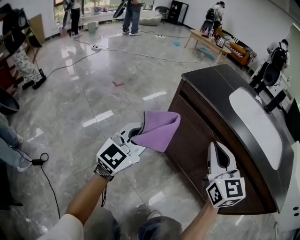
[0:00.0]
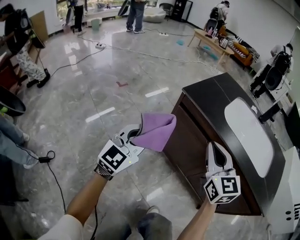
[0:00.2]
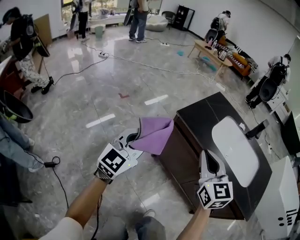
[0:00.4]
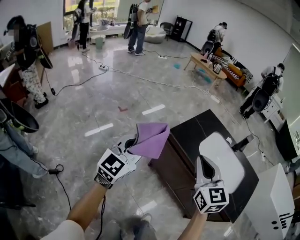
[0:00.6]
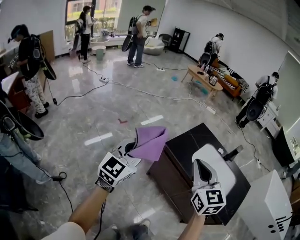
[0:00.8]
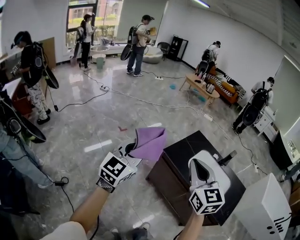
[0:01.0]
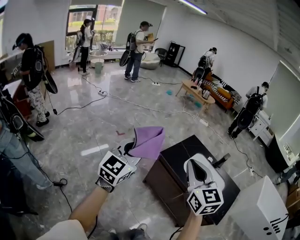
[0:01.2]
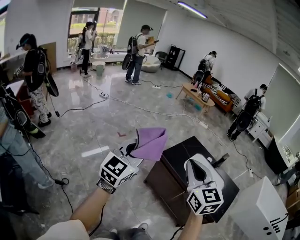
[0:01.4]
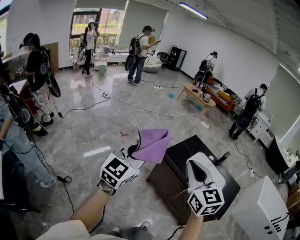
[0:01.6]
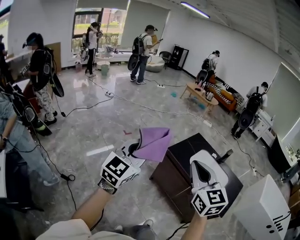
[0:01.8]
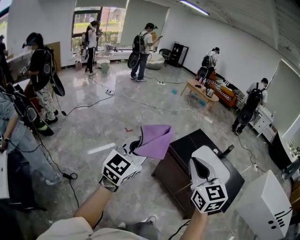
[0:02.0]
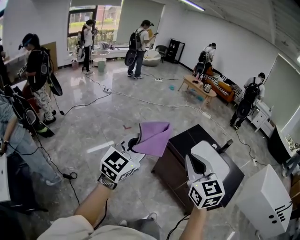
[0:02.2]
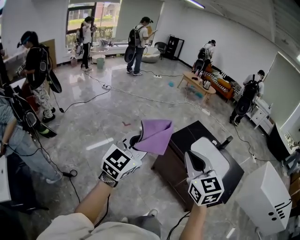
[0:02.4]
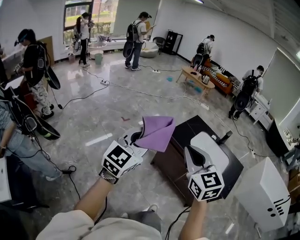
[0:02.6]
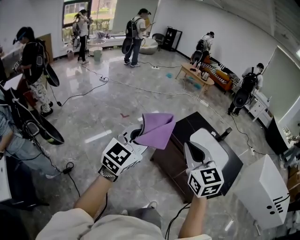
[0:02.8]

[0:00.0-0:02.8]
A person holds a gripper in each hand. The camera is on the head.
0:00.0 to 0:01.4: Both grippers travel together upward, about 60 cm.
0:01.4 to 0:02.8: The right gripper heads backward and to the left, covering approximately 10 cm; the left gripper moves backward, roughly 10 cm.

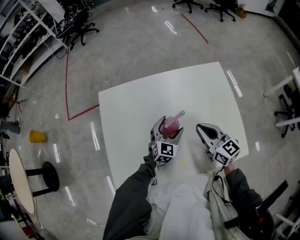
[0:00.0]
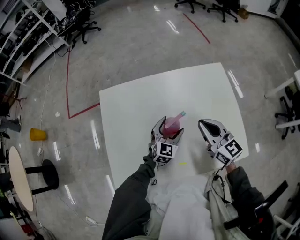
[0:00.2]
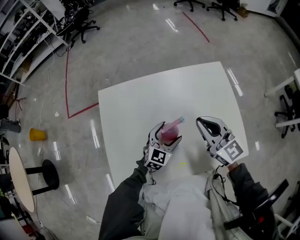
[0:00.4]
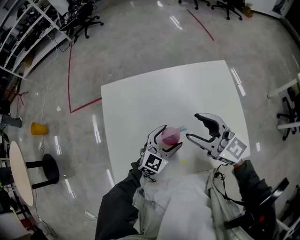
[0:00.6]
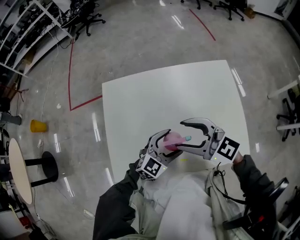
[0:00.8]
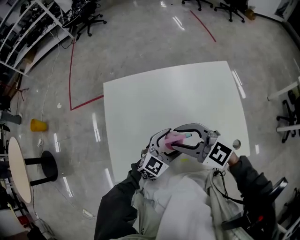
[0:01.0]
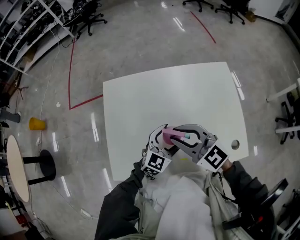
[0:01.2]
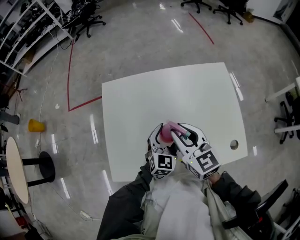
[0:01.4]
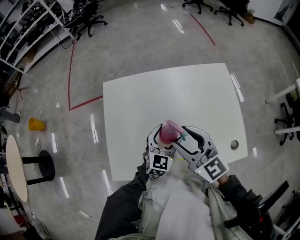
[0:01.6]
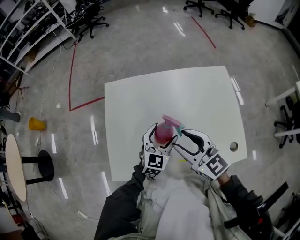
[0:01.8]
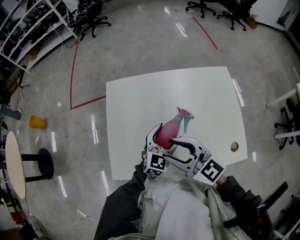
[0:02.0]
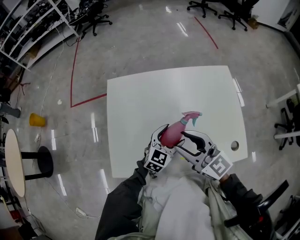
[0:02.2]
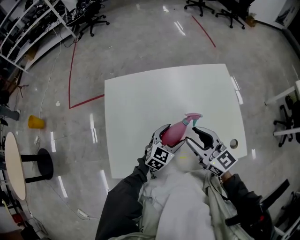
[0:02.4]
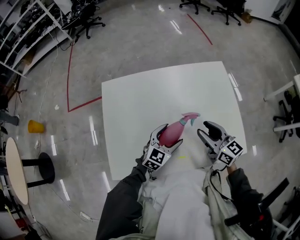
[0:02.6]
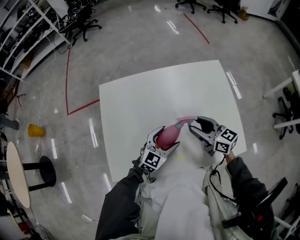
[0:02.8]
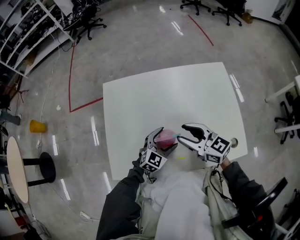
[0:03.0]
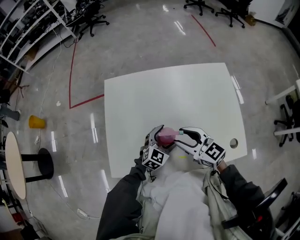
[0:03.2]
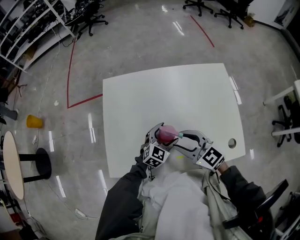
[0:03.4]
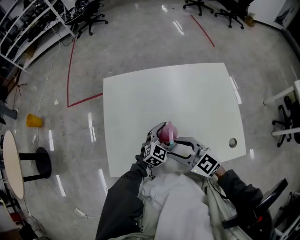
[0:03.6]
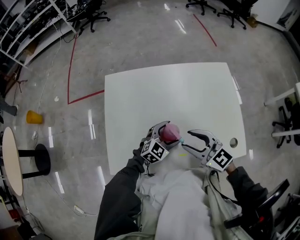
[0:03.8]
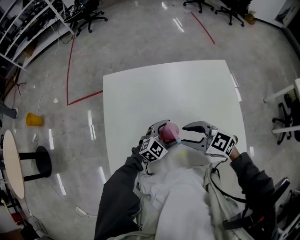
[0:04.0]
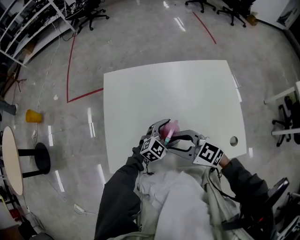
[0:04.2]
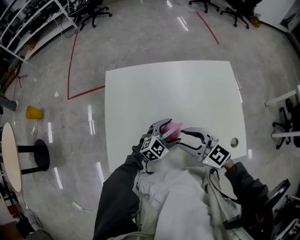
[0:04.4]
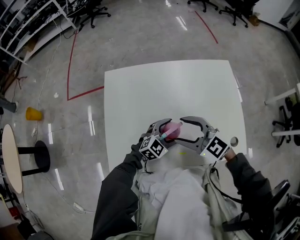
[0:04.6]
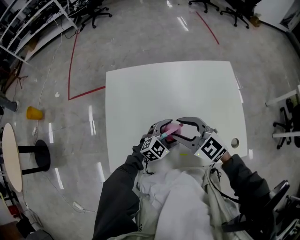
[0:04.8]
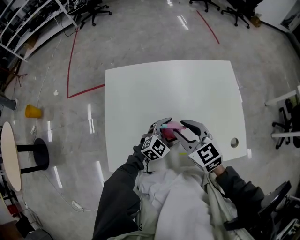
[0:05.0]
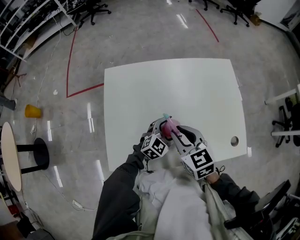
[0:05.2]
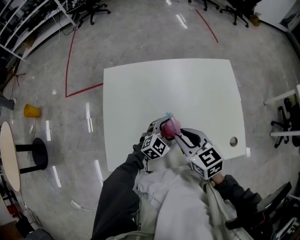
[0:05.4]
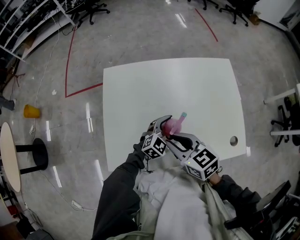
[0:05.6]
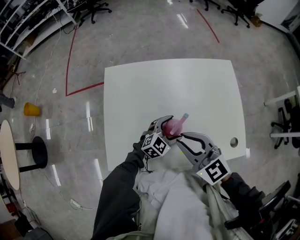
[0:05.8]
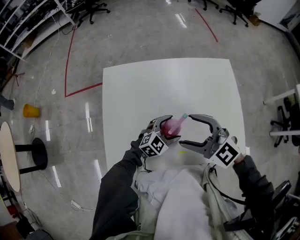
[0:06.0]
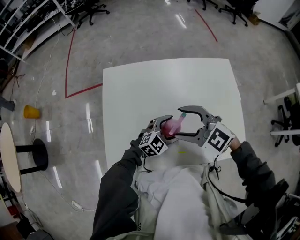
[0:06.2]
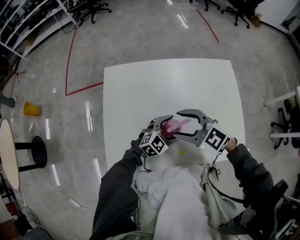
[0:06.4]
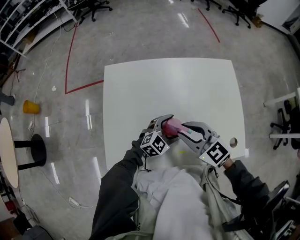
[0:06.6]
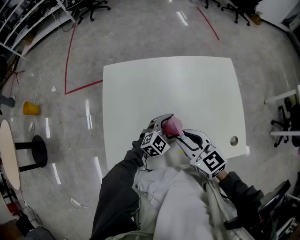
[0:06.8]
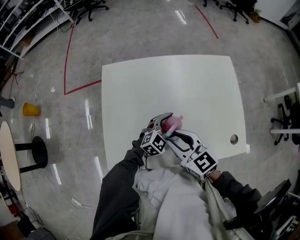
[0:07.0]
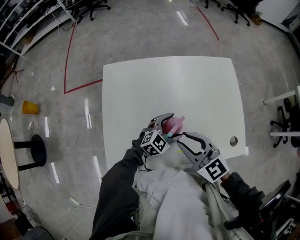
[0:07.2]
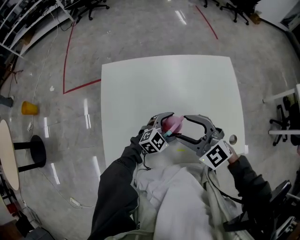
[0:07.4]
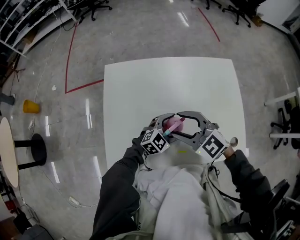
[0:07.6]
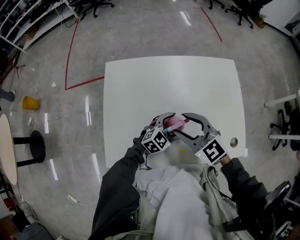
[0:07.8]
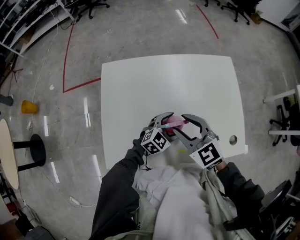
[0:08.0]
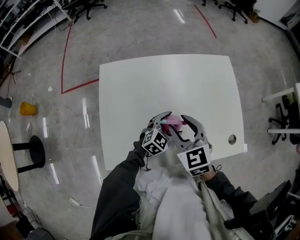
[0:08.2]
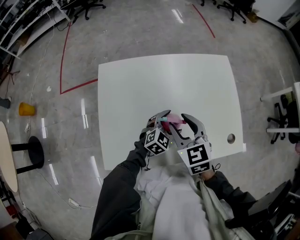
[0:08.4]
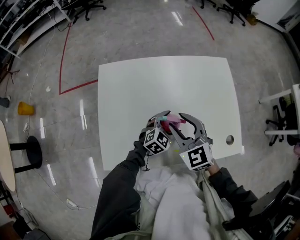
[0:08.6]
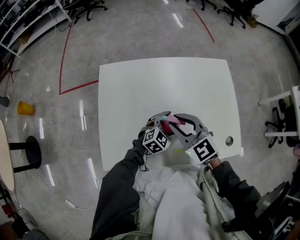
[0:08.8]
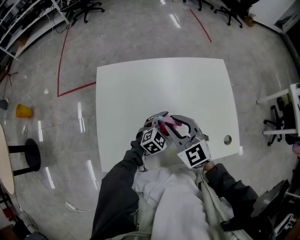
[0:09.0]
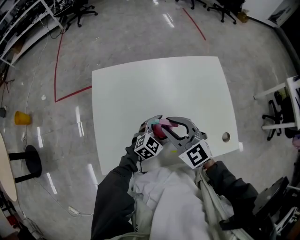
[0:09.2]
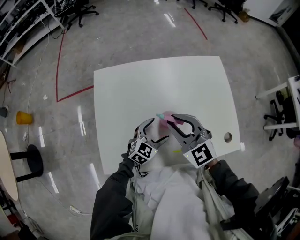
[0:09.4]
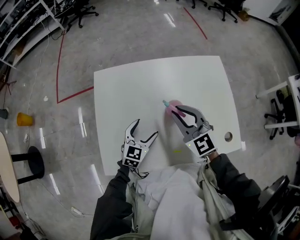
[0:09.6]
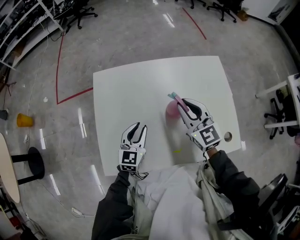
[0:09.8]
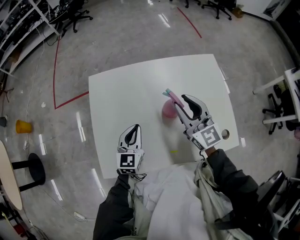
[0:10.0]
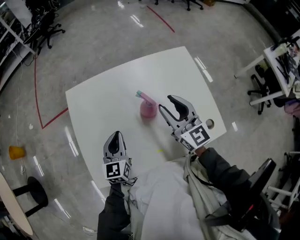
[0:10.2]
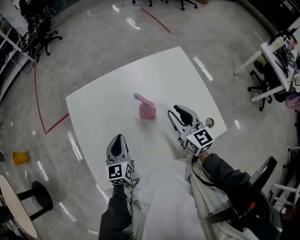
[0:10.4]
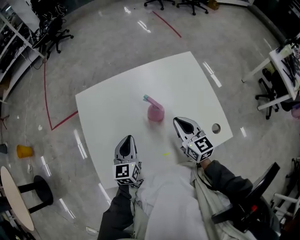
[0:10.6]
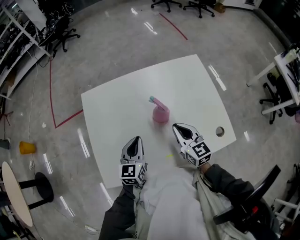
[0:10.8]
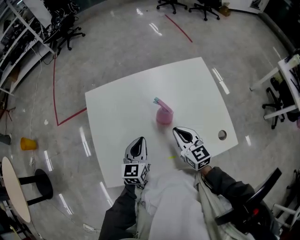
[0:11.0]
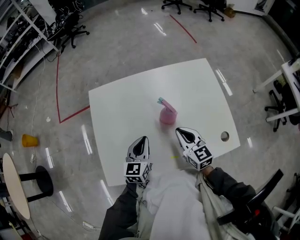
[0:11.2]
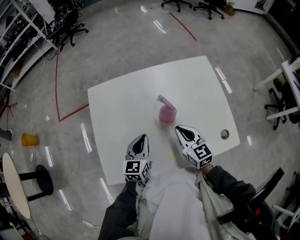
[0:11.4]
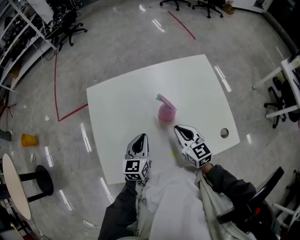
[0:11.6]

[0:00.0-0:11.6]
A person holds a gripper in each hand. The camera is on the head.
0:00.0 to 0:01.4: The right gripper goes some 15 cm to the left and upward, and opens, then closes once more. The left gripper goes some 10 cm upward and backward.
0:01.4 to 0:02.8: The right gripper travels to the right and downward by roughly 15 cm, and rotates roughly 20 degrees.
0:02.8 to 0:04.4: The right gripper moves some 15 cm, and turns by approximately 30 degrees.
0:04.4 to 0:05.8: The right gripper opens and closes again.
0:05.8 to 0:07.2: The right gripper opens and closes again.
0:07.2 to 0:08.8: The right gripper shifts about 5 cm forward, and opens and closes again.
0:08.8 to 0:10.2: The right gripper is displaced to the right and forward by approximately 10 cm, and rotates approximately 40 degrees. The left gripper goes roughly 20 cm to the left and upward, swivels some 50 degrees, and closes its fingers.
0:10.2 to 0:11.6: The left gripper heads to the right, covering roughly 10 cm. Meanwhile the right gripper shifts approximately 15 cm downward and backward, changes its angle by about 20 degrees, and closes up.

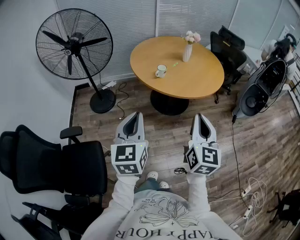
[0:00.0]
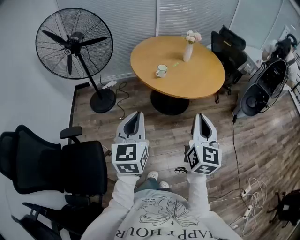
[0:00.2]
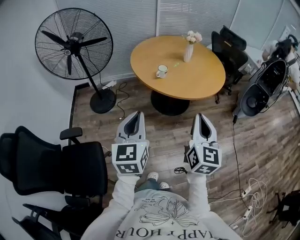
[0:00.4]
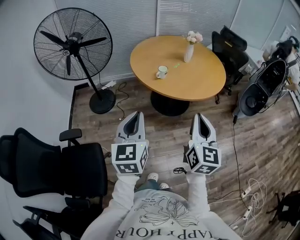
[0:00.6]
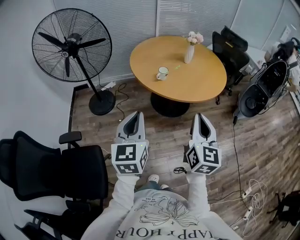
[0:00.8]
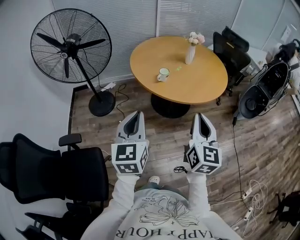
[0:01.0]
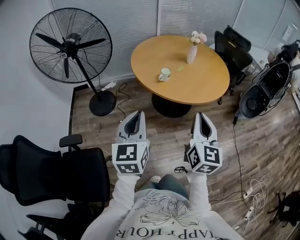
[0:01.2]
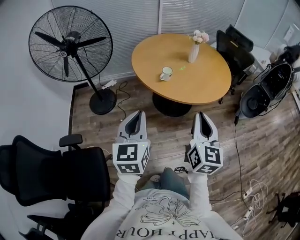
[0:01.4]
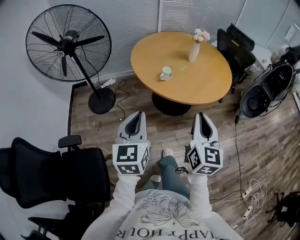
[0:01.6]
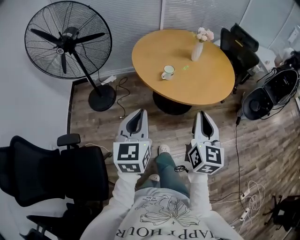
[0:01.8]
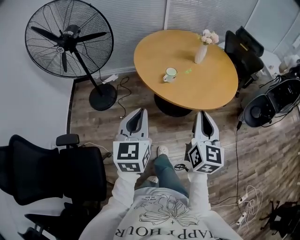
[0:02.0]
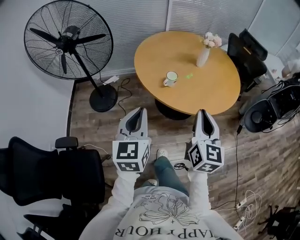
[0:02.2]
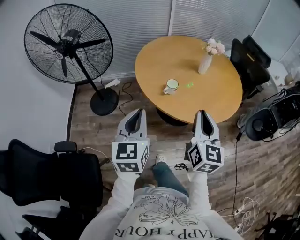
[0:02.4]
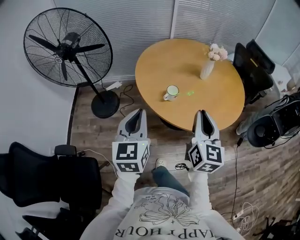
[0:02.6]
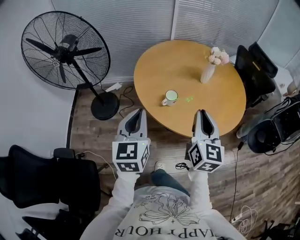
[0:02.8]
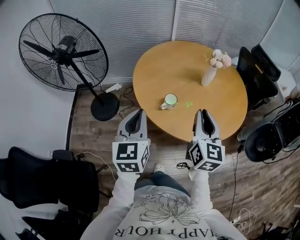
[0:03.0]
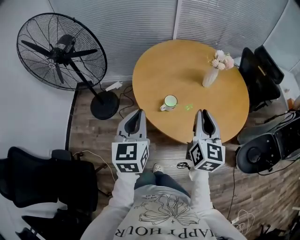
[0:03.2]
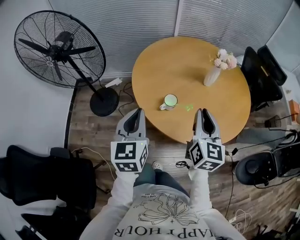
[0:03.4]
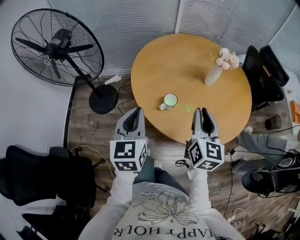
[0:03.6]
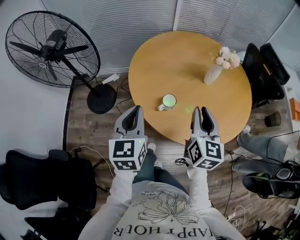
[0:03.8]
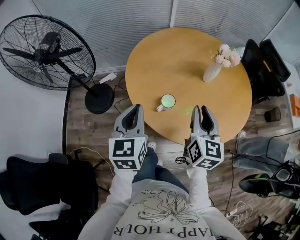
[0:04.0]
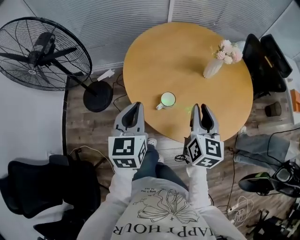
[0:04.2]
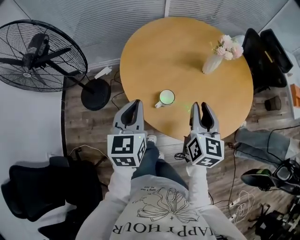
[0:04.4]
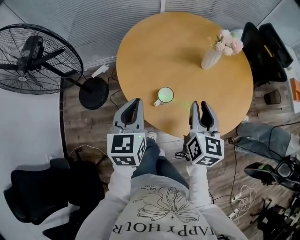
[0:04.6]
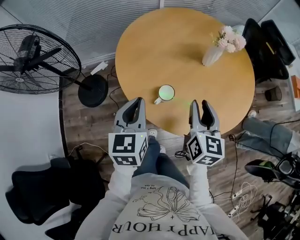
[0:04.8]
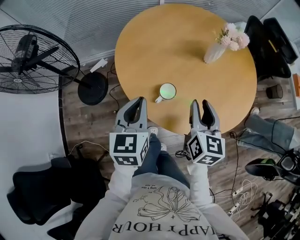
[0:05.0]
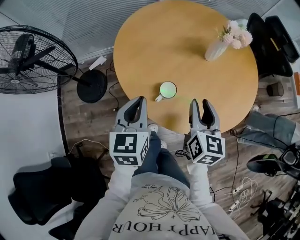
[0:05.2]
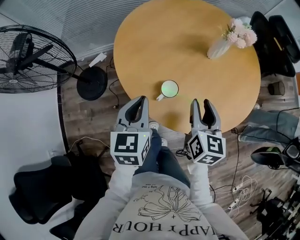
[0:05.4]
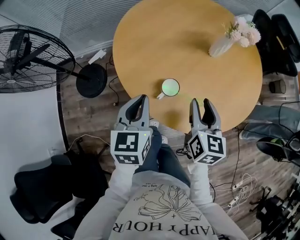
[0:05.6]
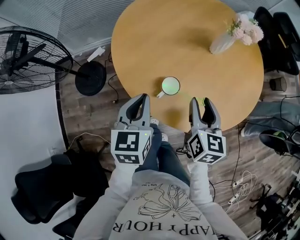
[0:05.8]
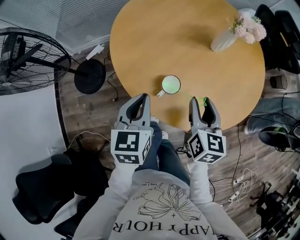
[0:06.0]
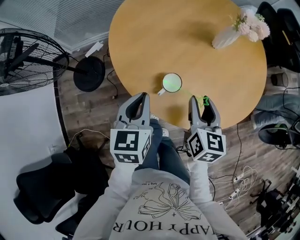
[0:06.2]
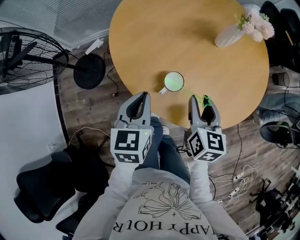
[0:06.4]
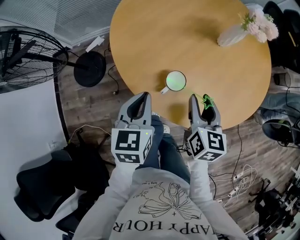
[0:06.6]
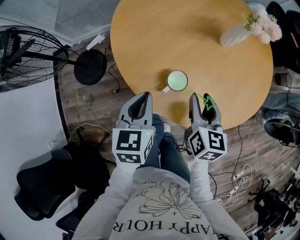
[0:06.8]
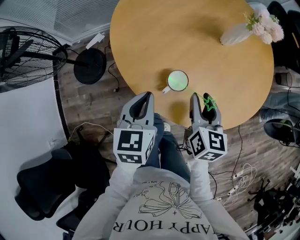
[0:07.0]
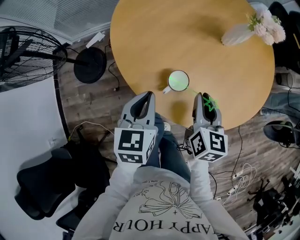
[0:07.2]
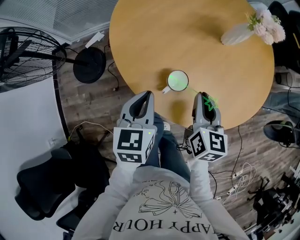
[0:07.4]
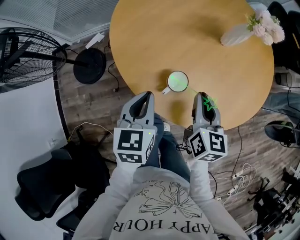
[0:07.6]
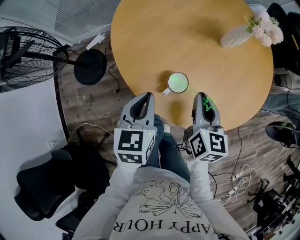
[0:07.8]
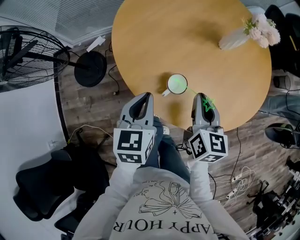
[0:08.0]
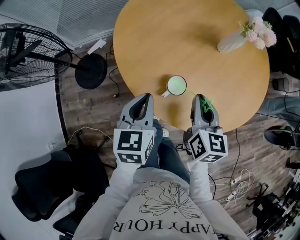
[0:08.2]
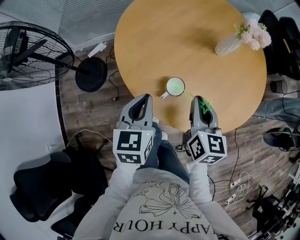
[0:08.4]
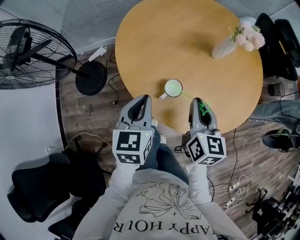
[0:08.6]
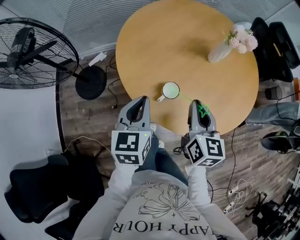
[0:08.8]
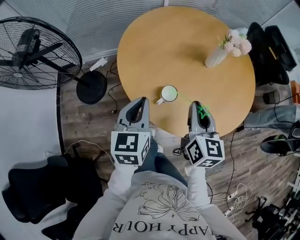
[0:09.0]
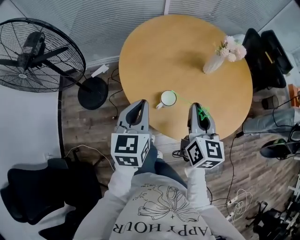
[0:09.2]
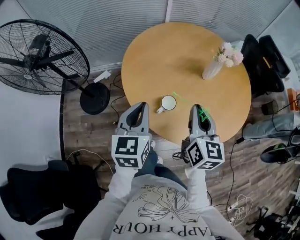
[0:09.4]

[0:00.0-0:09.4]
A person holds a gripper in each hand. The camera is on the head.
0:00.0 to 0:01.6: Both grippers travel together forward, about 10 cm.
0:01.6 to 0:03.2: Both grippers travel together forward, roughly 30 cm.
0:03.2 to 0:04.8: The right gripper goes some 15 cm downward and forward. The left gripper shifts some 15 cm forward and downward.
0:04.8 to 0:06.2: Both grippers move downward, approximately 10 cm.
0:06.2 to 0:07.8: The right gripper closes its fingers.
0:07.8 to 0:09.4: Both grippers move upward, about 15 cm.
